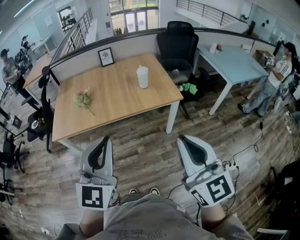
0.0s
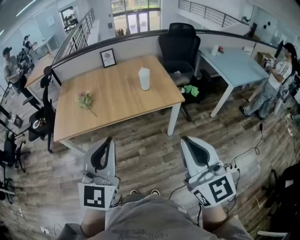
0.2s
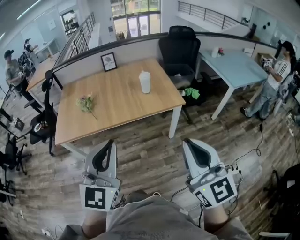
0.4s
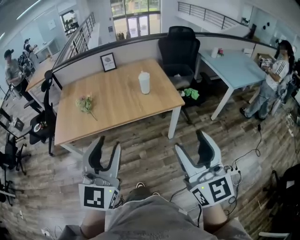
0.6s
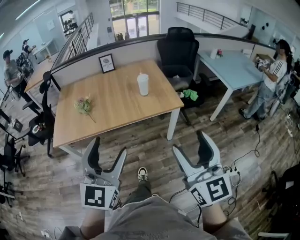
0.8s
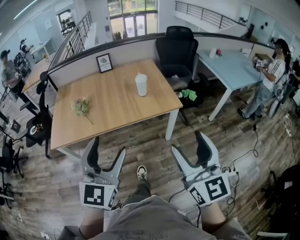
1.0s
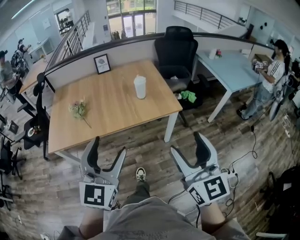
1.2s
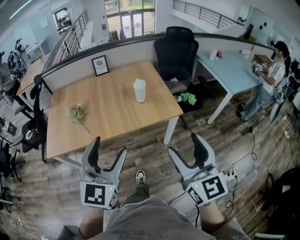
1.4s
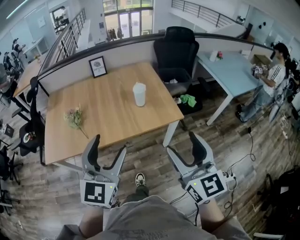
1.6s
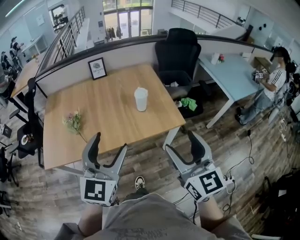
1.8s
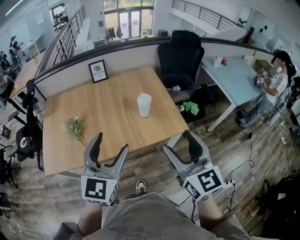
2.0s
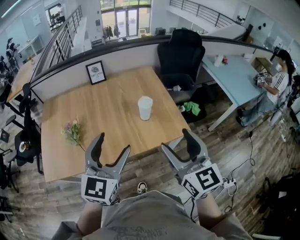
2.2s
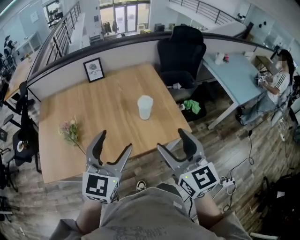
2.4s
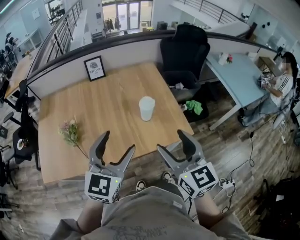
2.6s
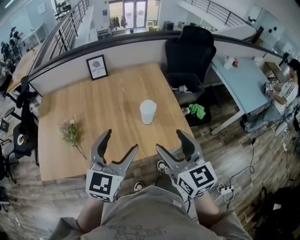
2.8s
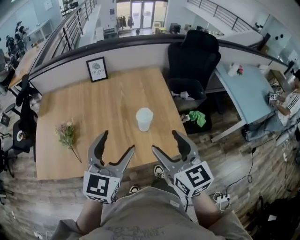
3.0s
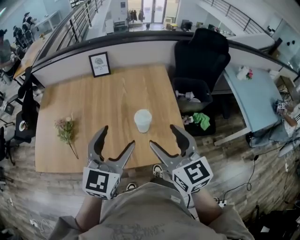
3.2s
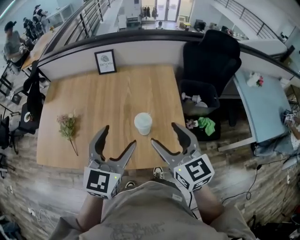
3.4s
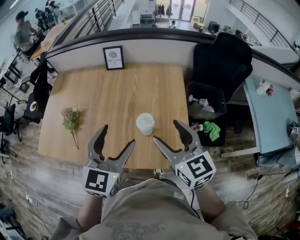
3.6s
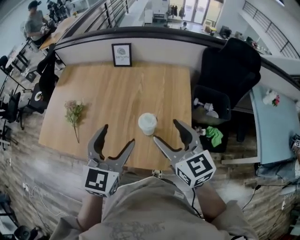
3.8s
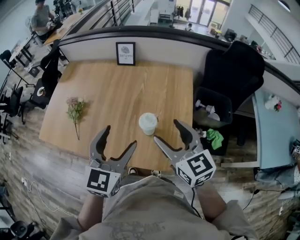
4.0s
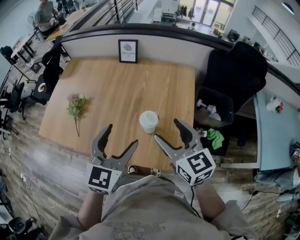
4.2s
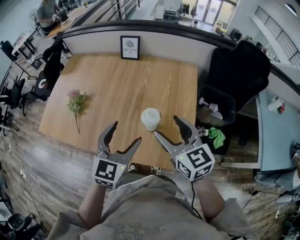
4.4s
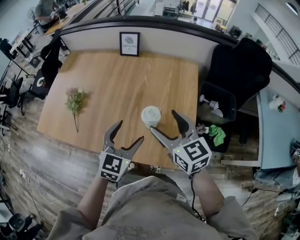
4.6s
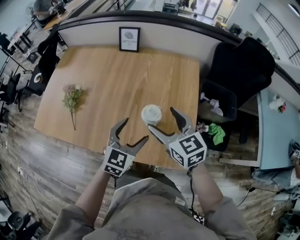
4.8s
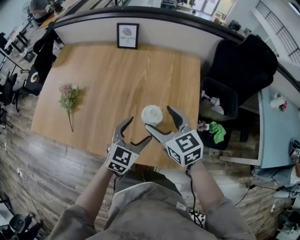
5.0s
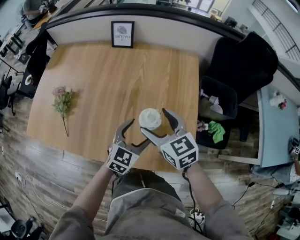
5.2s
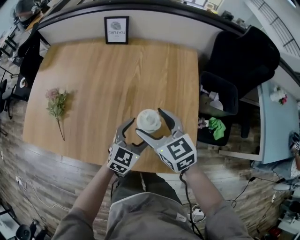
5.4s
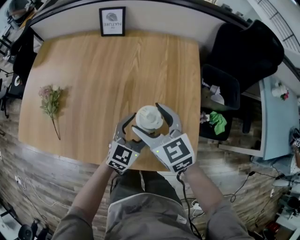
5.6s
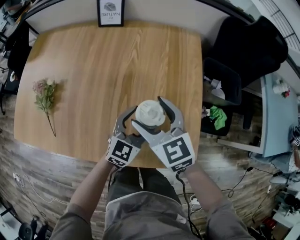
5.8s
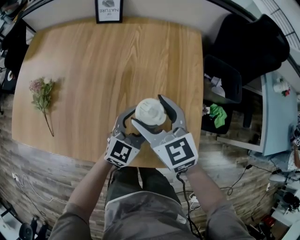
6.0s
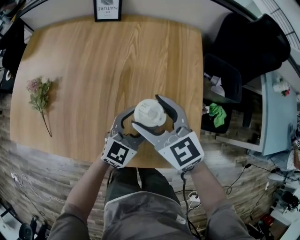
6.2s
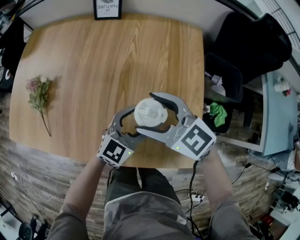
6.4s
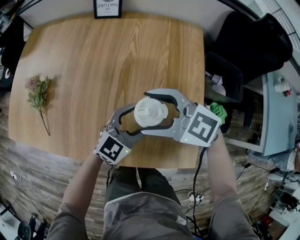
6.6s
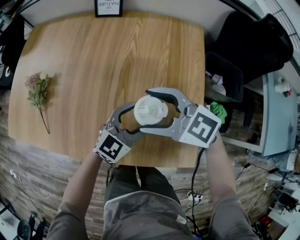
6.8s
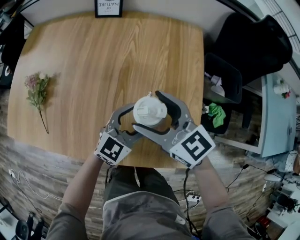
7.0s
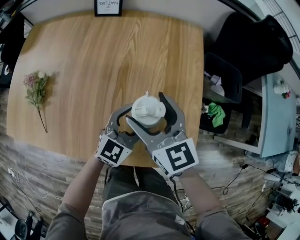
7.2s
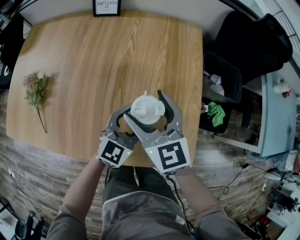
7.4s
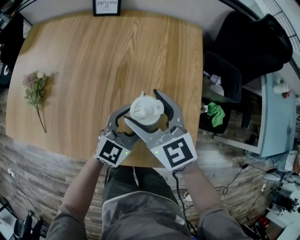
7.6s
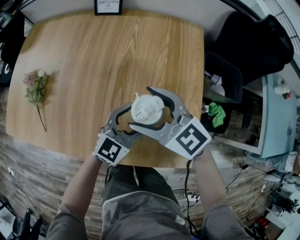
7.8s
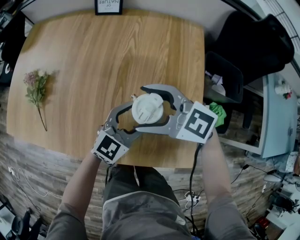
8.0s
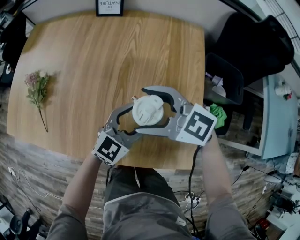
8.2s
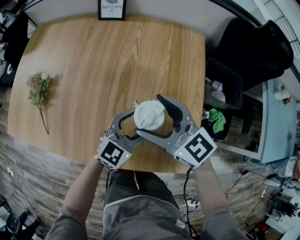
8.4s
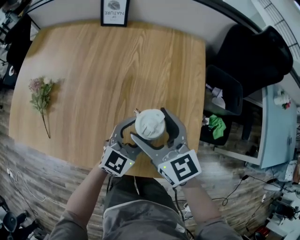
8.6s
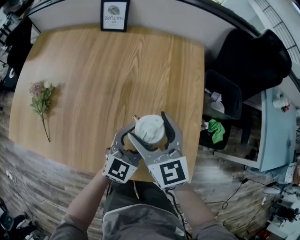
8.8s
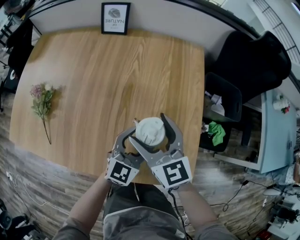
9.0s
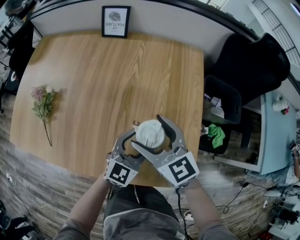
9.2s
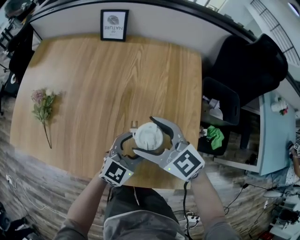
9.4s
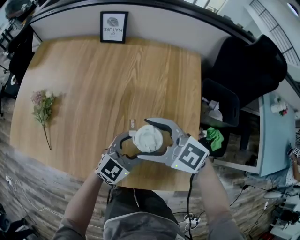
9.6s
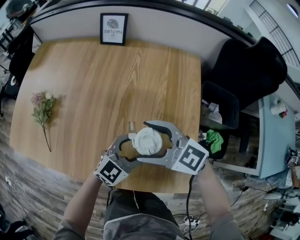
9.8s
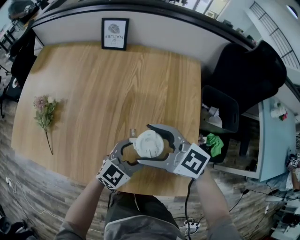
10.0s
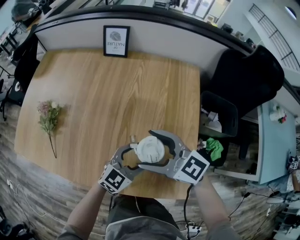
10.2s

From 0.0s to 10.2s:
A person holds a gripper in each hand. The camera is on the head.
From 0.0s to 1.4s: Both grippers move forward, about 15 cm. The left gripper opens up; the right gripper opens its fingers.
From 1.4s to 3.0s: Both grippers move forward, approximately 35 cm.
From 3.0s to 4.4s: The right gripper travels forward, to the right and downward by roughly 15 cm, and swivels approximately 30 degrees. The left gripper moves to the right, downward and forward, about 15 cm, and changes its angle by some 20 degrees.
From 4.4s to 5.8s: The right gripper moves downward, forward and to the left, roughly 20 cm. The left gripper is displaced downward and forward by approximately 25 cm, and rotates roughly 20 degrees.
From 8.8s to 10.2s: The right gripper swivels approximately 40 degrees.

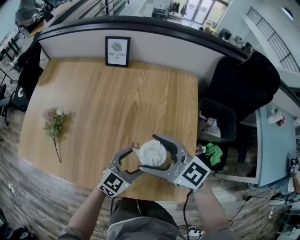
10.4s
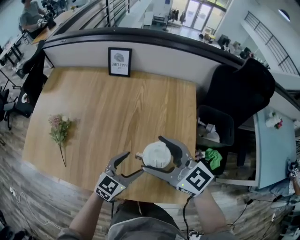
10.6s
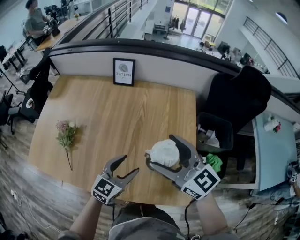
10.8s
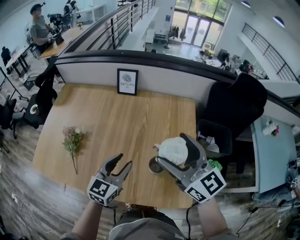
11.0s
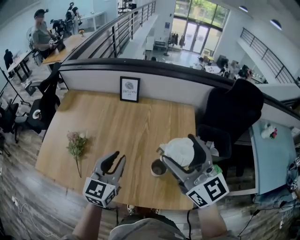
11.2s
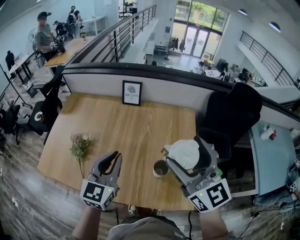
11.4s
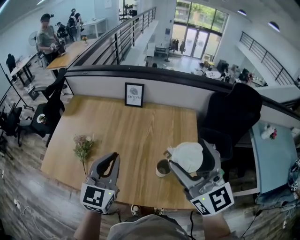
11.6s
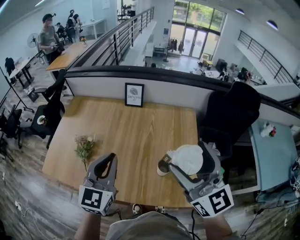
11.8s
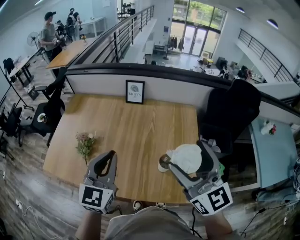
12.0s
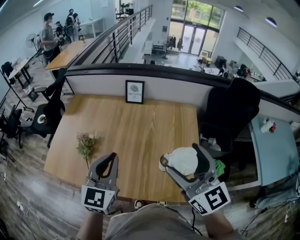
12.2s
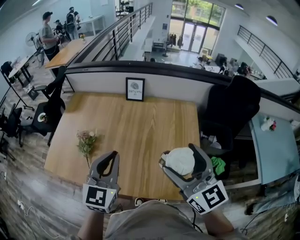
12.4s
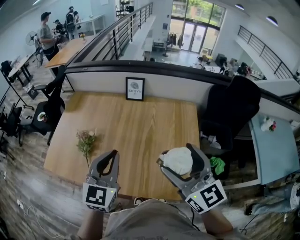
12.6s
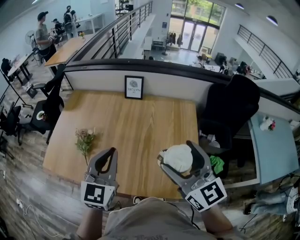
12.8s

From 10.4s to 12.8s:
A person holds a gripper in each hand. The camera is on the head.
From 10.4s to 11.6s: The right gripper heads upward, covering roughly 25 cm, and changes its angle by about 40 degrees; the left gripper moves upward and to the left, approximately 35 cm, rotates roughly 30 degrees, and closes its fingers.
From 11.6s to 12.8s: The right gripper shifts by approximately 5 cm.

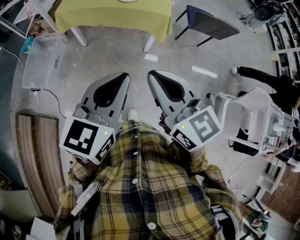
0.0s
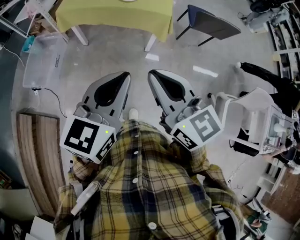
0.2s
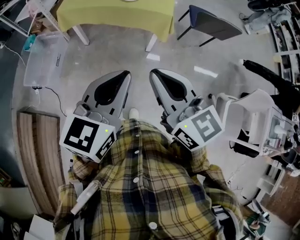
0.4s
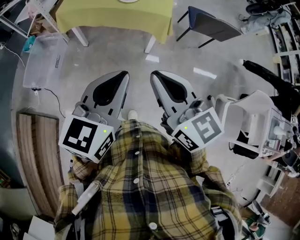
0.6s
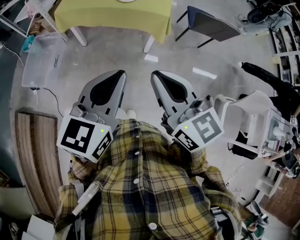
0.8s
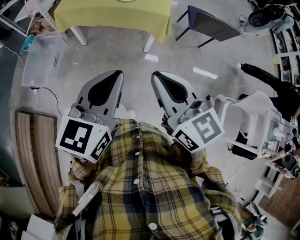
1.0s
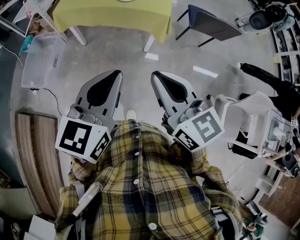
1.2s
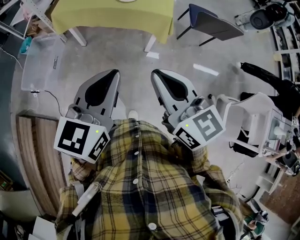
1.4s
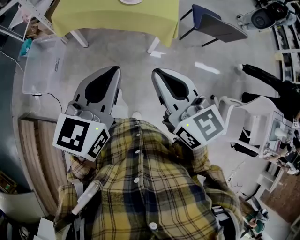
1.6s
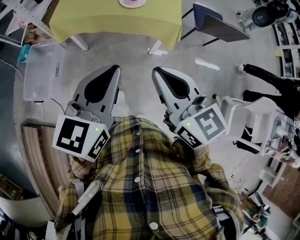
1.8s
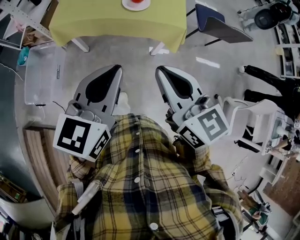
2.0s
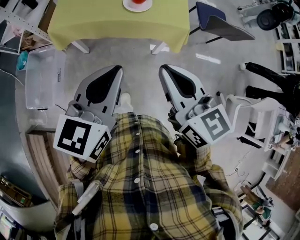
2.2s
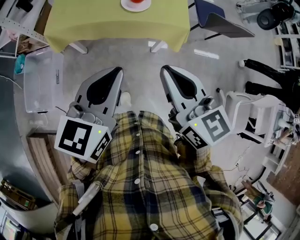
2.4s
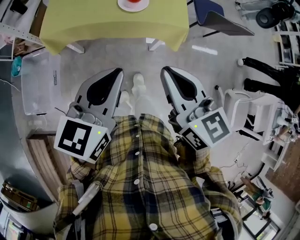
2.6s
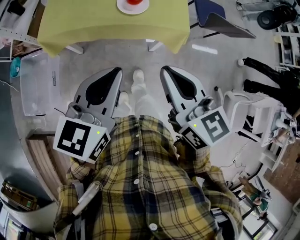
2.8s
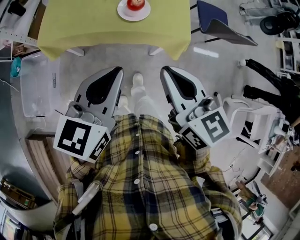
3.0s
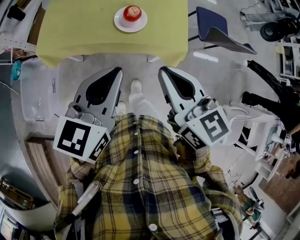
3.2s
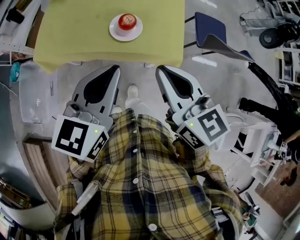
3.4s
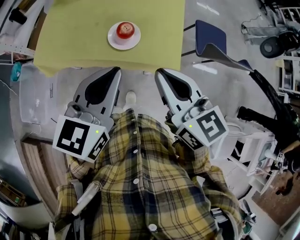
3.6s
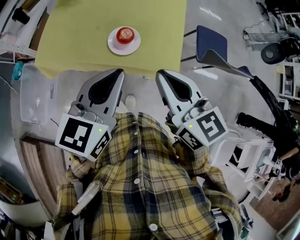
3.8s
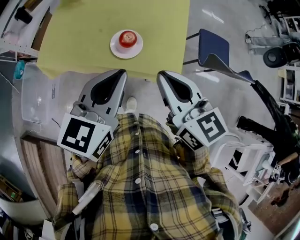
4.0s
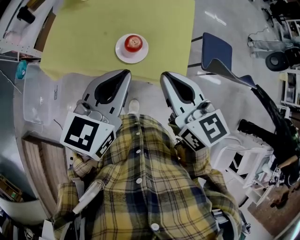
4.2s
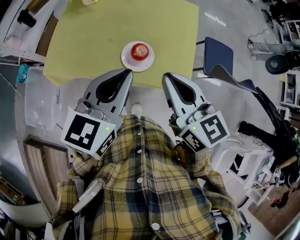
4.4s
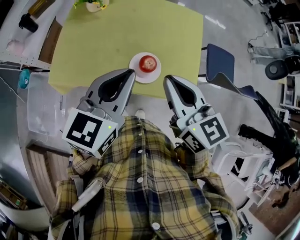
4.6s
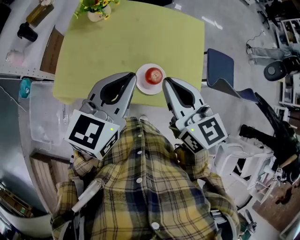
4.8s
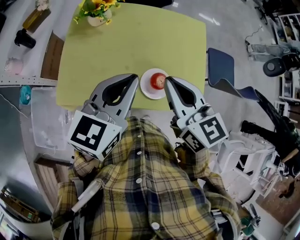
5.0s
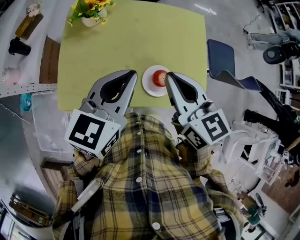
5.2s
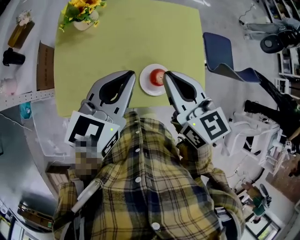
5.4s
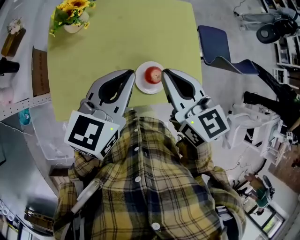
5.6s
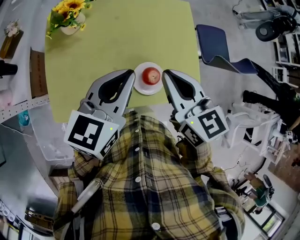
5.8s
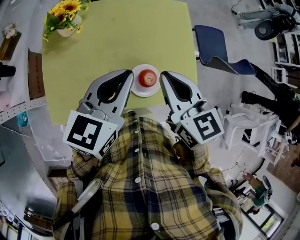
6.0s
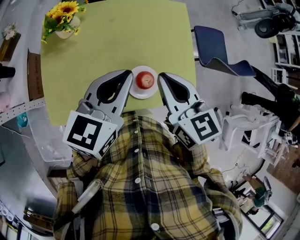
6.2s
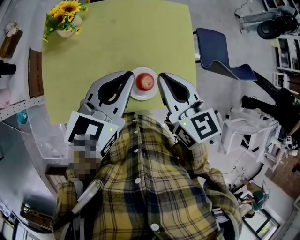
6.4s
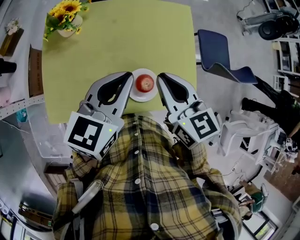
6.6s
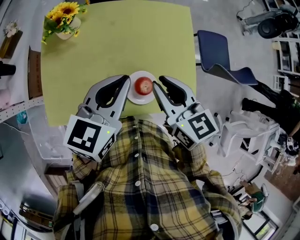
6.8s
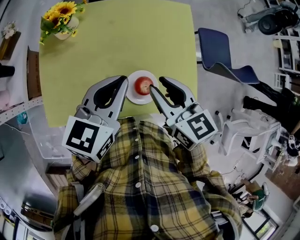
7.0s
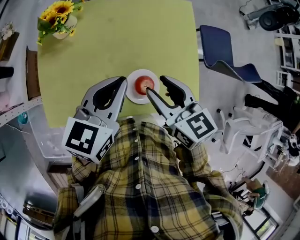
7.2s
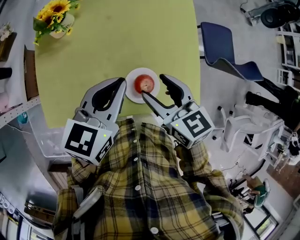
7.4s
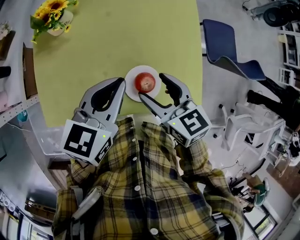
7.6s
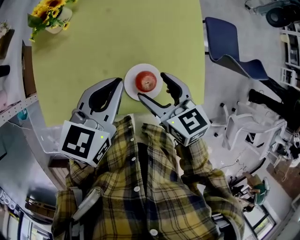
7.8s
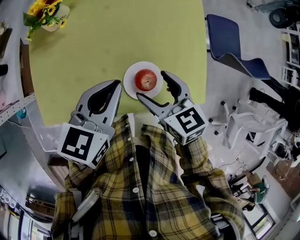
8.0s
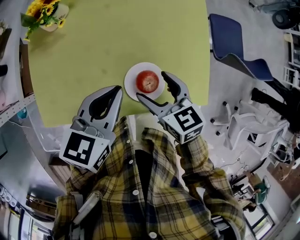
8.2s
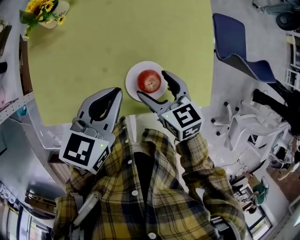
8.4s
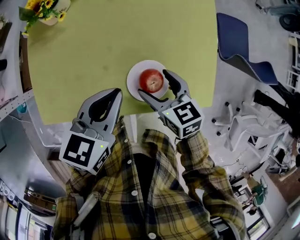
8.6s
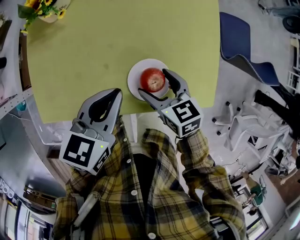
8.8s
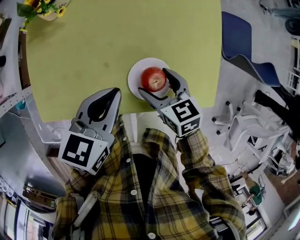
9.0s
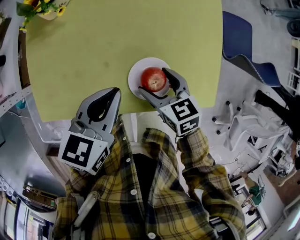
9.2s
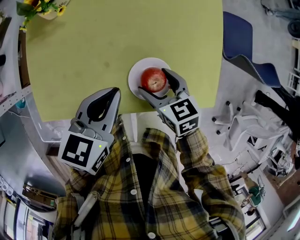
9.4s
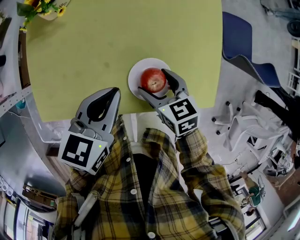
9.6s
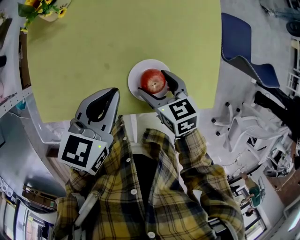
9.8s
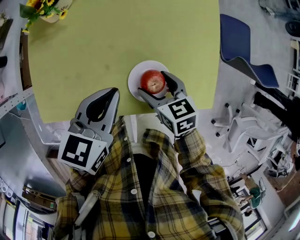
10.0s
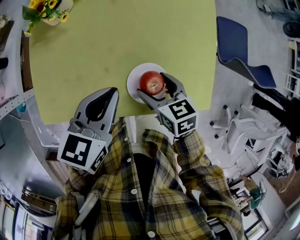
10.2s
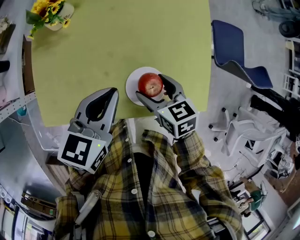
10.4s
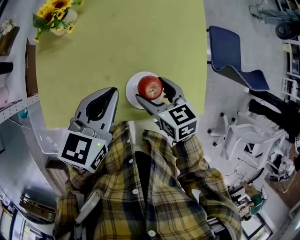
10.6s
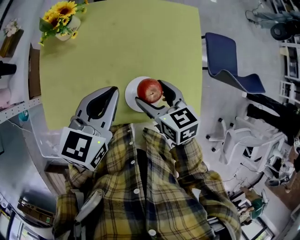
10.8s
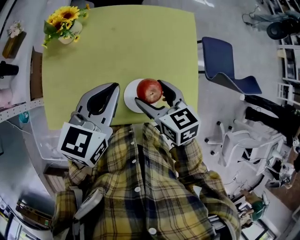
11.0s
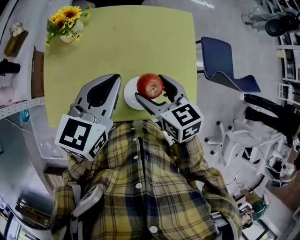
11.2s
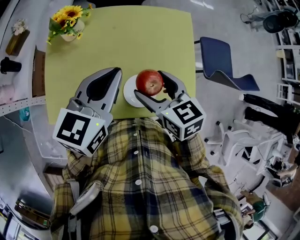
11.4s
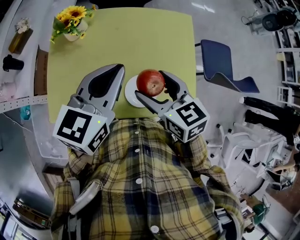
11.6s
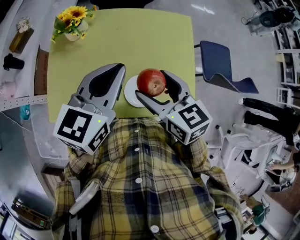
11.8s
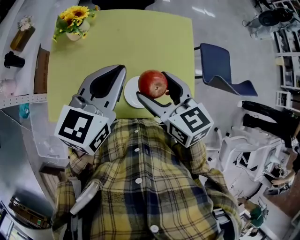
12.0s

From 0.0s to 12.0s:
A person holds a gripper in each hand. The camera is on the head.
From 0.0s to 1.6s: Both grippers move forward, some 10 cm.
From 1.6s to 3.0s: The grippers both shift forward by some 25 cm.
From 3.0s to 4.4s: Both grippers move forward, roughly 20 cm.
From 4.4s to 6.0s: The right gripper moves forward and to the left, roughly 15 cm; the left gripper is displaced forward by approximately 15 cm.
From 6.0s to 7.6s: The right gripper goes about 10 cm downward, and opens up. Meanwhile the left gripper heads downward, covering approximately 5 cm.
From 7.6s to 9.0s: The left gripper heads downward, covering approximately 10 cm, while the right gripper heads downward, covering approximately 15 cm.
From 9.0s to 10.4s: The grippers make only small movements.
From 10.4s to 12.0s: Both grippers travel together upward, roughly 15 cm.
